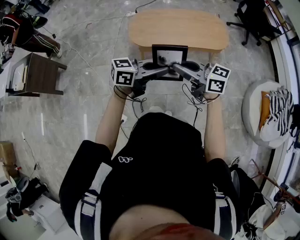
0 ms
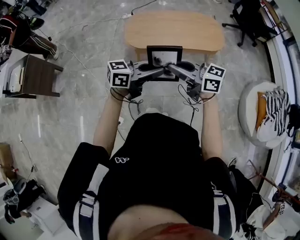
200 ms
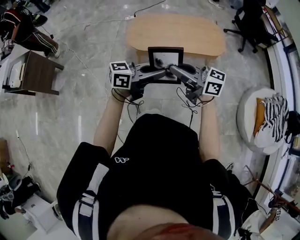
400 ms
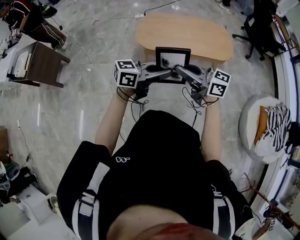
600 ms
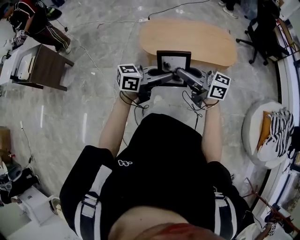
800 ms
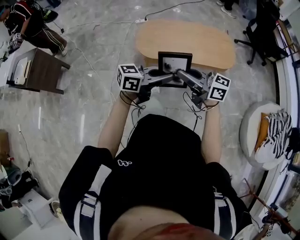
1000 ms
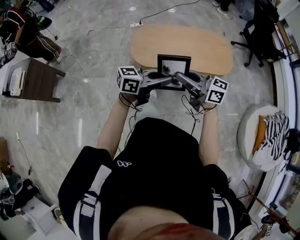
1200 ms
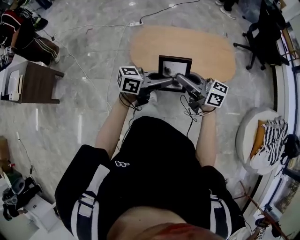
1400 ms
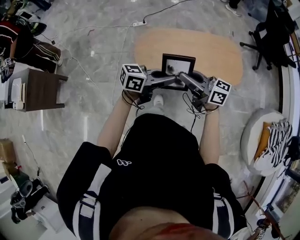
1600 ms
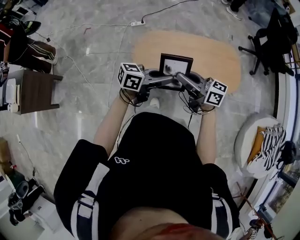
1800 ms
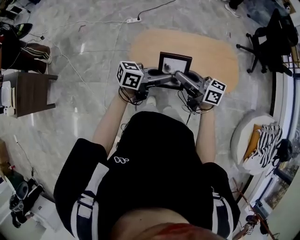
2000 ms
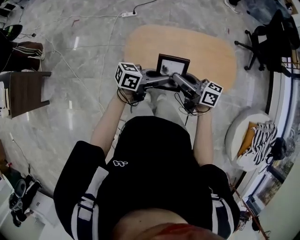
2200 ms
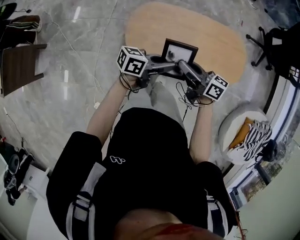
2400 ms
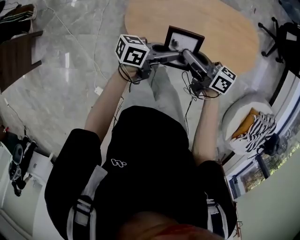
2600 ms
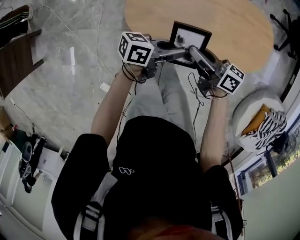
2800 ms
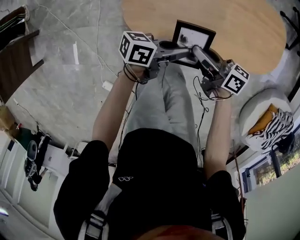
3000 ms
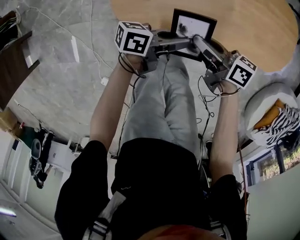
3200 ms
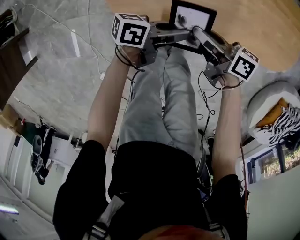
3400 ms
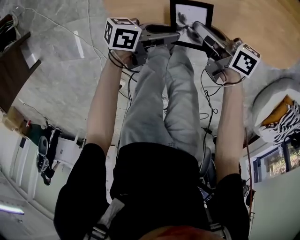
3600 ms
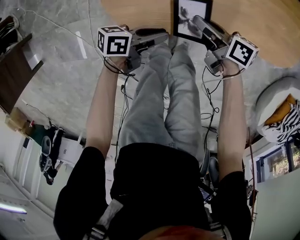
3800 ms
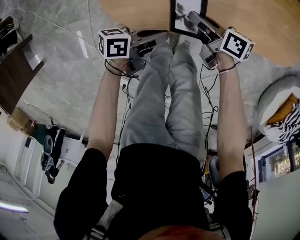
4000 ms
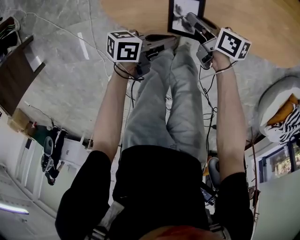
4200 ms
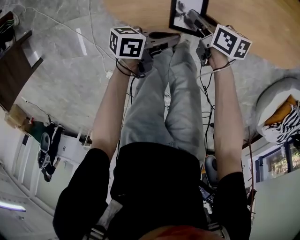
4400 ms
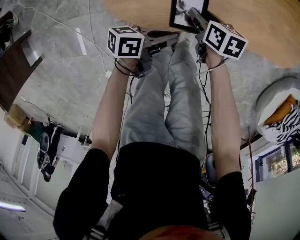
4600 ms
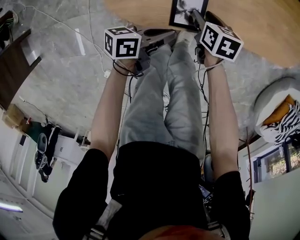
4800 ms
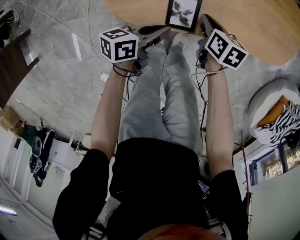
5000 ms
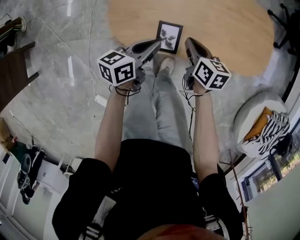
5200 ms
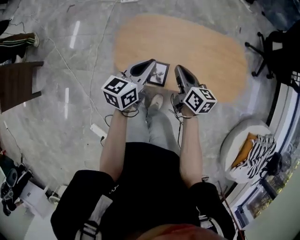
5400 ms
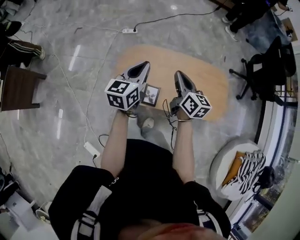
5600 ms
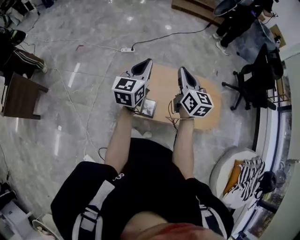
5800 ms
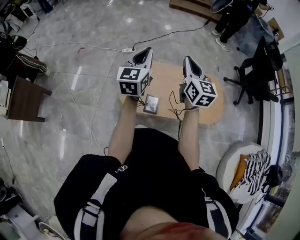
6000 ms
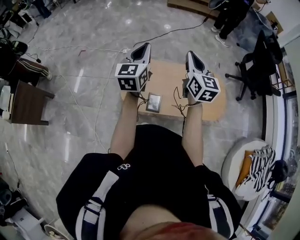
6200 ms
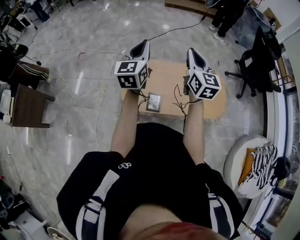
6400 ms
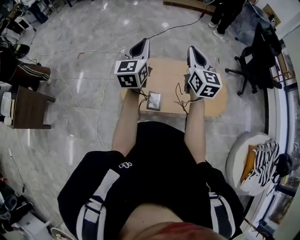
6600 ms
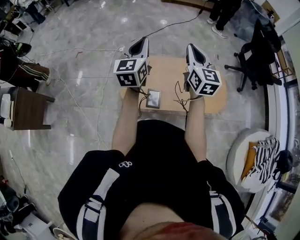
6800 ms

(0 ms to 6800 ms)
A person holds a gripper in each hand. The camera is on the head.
0 ms - 1400 ms: The left gripper ends up approximately 25 cm from where it was; the right gripper ends up about 25 cm from where it was.
1400 ms - 2800 ms: Both grippers travel together downward, some 25 cm. The left gripper changes its angle by roughly 30 degrees; the right gripper changes its angle by about 30 degrees.
2800 ms - 4000 ms: The grippers both shift downward by some 25 cm. The left gripper opens and closes again. Meanwhile the right gripper changes its angle by some 20 degrees.
4000 ms - 5400 ms: The two grippers go about 30 cm upward. The right gripper changes its angle by roughly 30 degrees, and opens and closes again; the left gripper turns by approximately 50 degrees.
5400 ms - 6800 ms: The two grippers go roughly 30 cm upward. The left gripper turns by roughly 30 degrees. Meanwhile the right gripper rotates approximately 40 degrees.

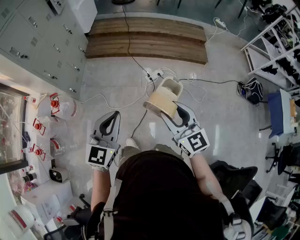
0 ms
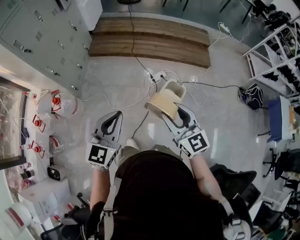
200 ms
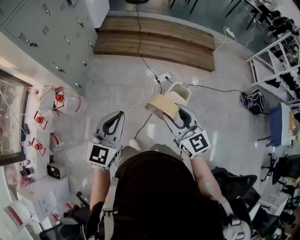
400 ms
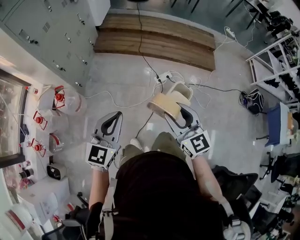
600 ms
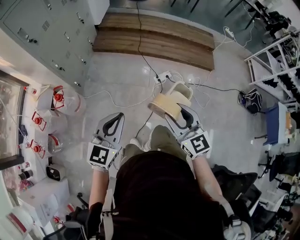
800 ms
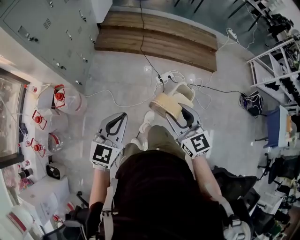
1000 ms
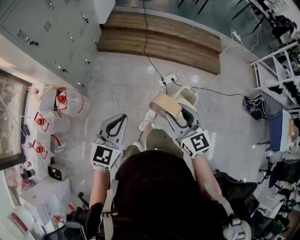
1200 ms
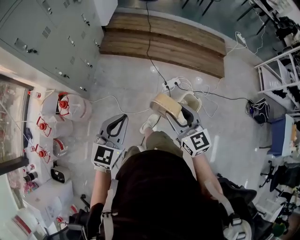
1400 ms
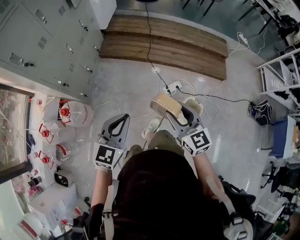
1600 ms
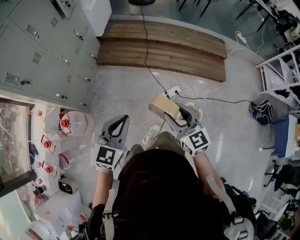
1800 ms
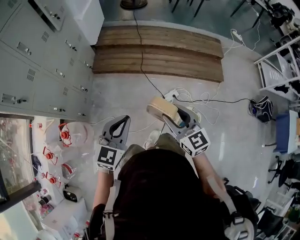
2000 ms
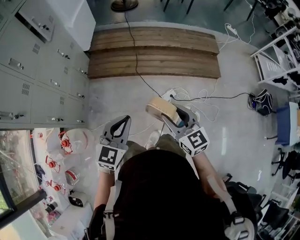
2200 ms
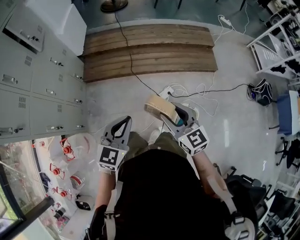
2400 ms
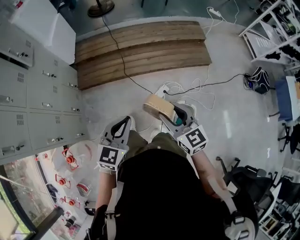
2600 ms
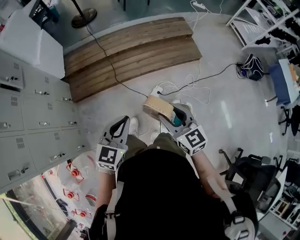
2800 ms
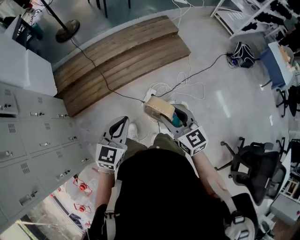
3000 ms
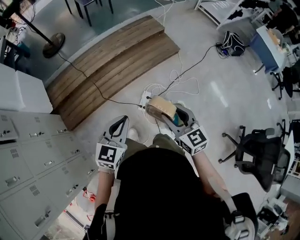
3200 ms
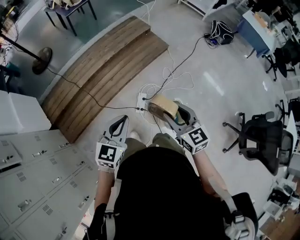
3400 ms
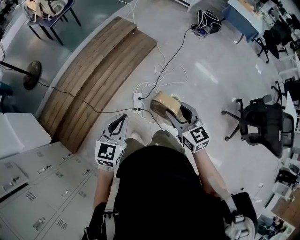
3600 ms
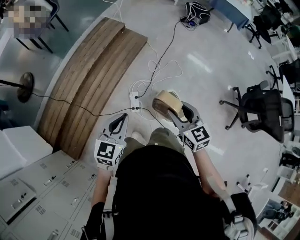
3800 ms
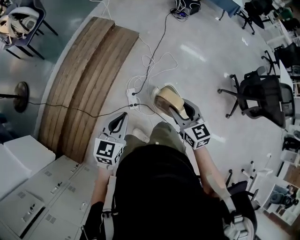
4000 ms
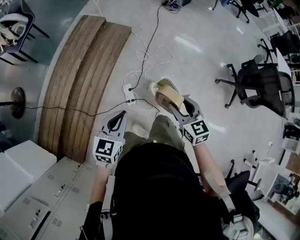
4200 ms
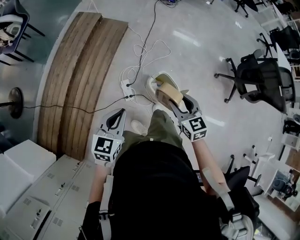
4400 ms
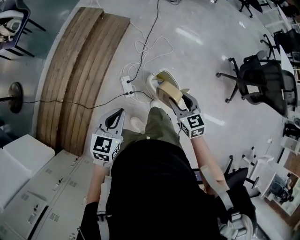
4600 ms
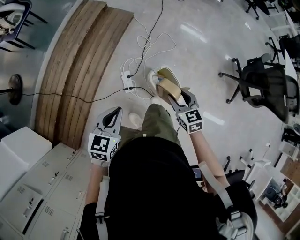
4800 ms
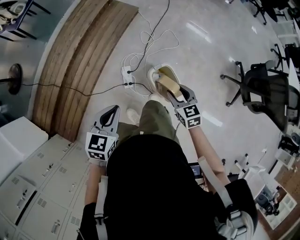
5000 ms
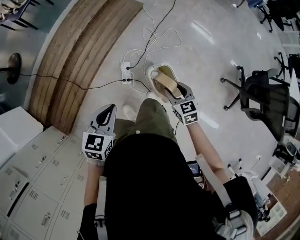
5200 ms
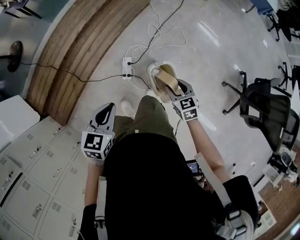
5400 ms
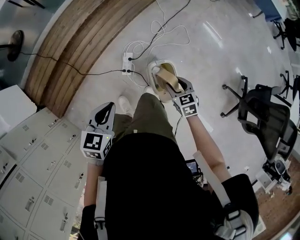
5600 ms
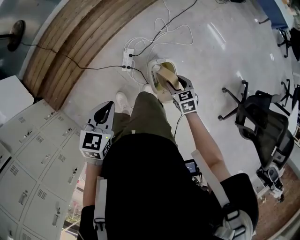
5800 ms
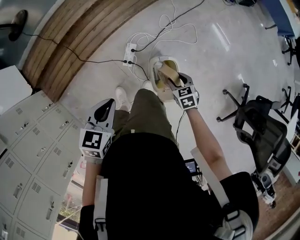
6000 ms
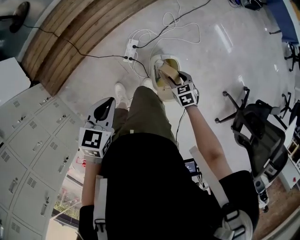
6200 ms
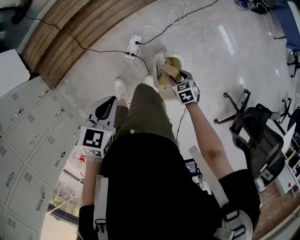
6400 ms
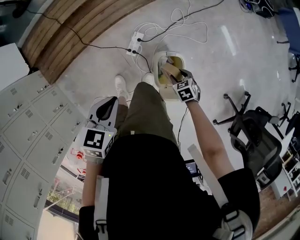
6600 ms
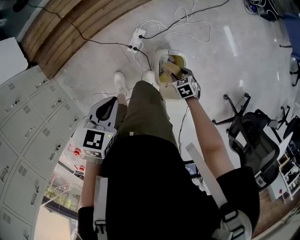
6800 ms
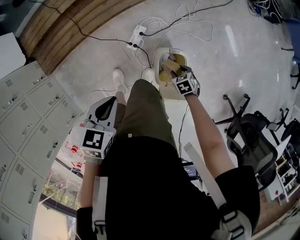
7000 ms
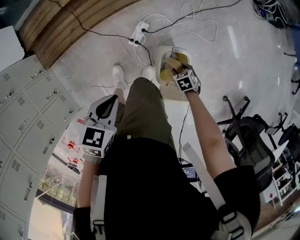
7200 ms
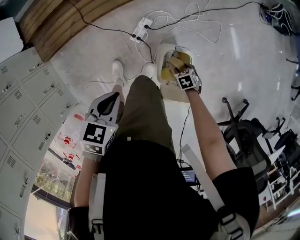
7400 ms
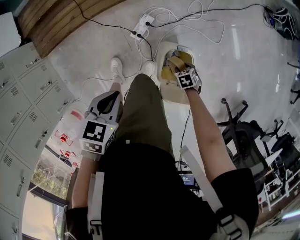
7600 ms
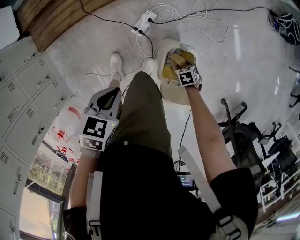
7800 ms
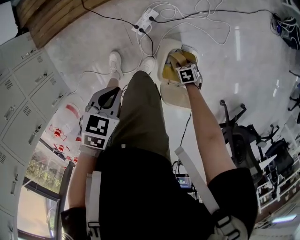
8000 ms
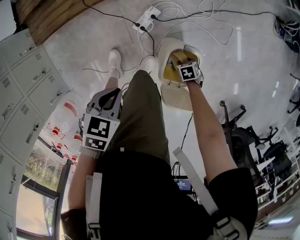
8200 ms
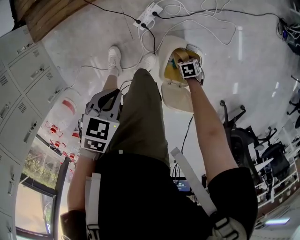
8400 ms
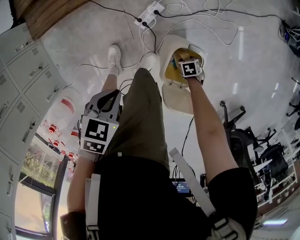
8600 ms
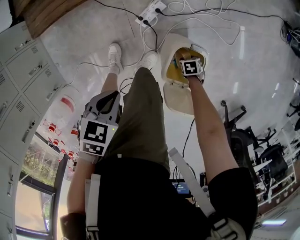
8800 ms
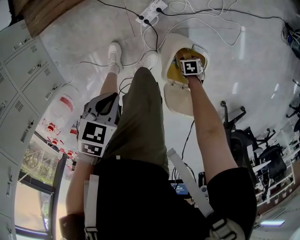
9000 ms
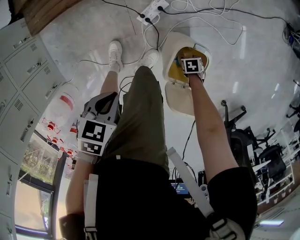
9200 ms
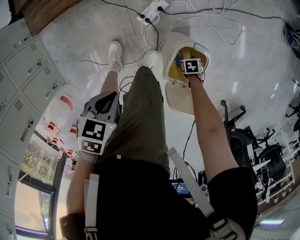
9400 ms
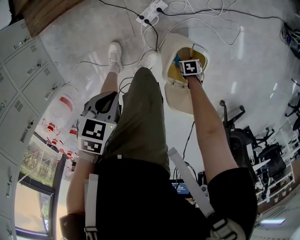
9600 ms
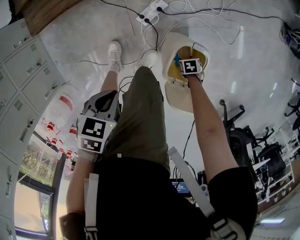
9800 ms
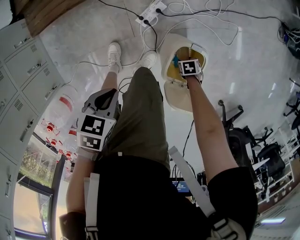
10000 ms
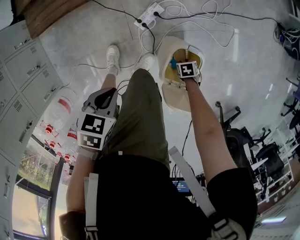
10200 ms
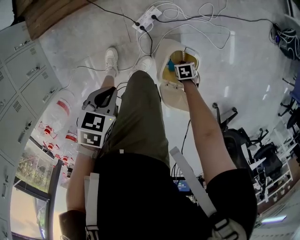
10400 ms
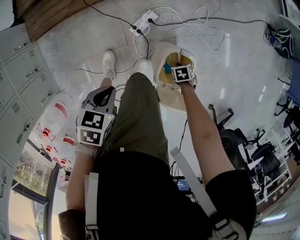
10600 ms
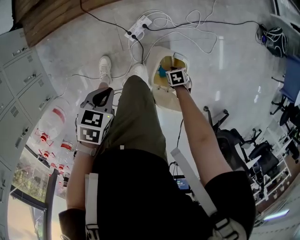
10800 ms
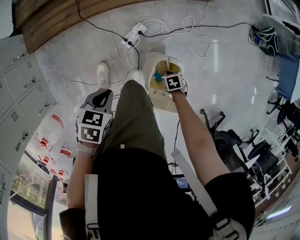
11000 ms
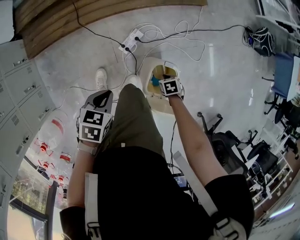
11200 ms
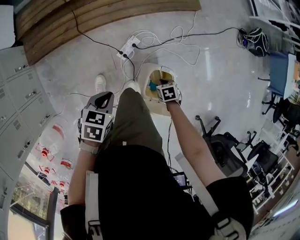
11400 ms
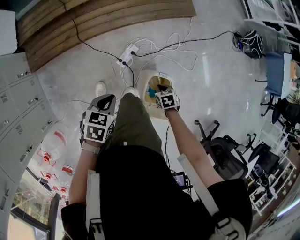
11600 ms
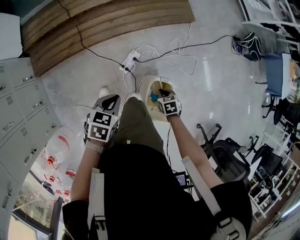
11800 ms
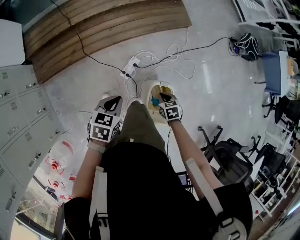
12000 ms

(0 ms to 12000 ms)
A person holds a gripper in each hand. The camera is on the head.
0 ms - 1600 ms: The two grippers go some 30 cm forward and to the left.
1600 ms - 3000 ms: The right gripper shifts by some 25 cm, and swivels about 30 degrees; the left gripper shifts by approximately 35 cm, and turns by about 30 degrees.
3000 ms - 4400 ms: The right gripper moves downward, approximately 10 cm, and turns by about 50 degrees; the left gripper changes place by about 15 cm, and swivels roughly 40 degrees.
4400 ms - 6000 ms: The left gripper travels downward by approximately 10 cm, and rotates roughly 30 degrees. The right gripper is displaced downward by some 25 cm, and changes its angle by some 40 degrees.
6000 ms - 7600 ms: The left gripper heads downward, covering roughly 15 cm, and turns by some 20 degrees. Meanwhile the right gripper travels downward by roughly 25 cm, and changes its angle by approximately 30 degrees.
7600 ms - 9000 ms: Both grippers move downward, approximately 15 cm.
9000 ms - 10400 ms: The right gripper is displaced upward by some 5 cm, and closes its fingers.
10400 ms - 12000 ms: The left gripper heads upward, covering approximately 15 cm, while the right gripper travels upward by roughly 30 cm, and rotates about 20 degrees.

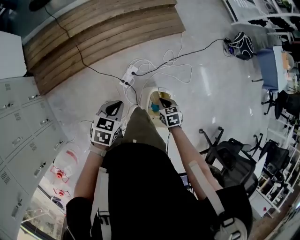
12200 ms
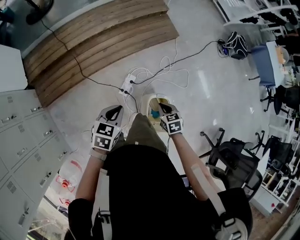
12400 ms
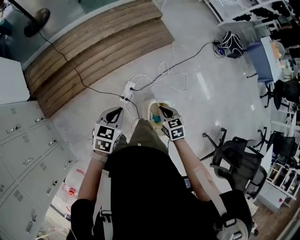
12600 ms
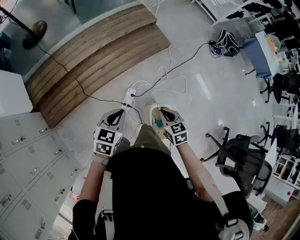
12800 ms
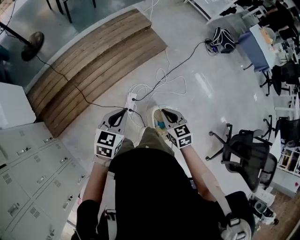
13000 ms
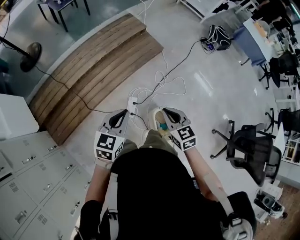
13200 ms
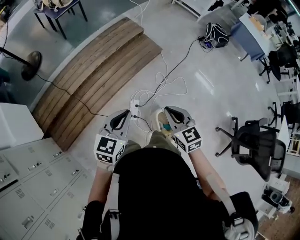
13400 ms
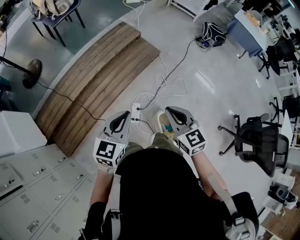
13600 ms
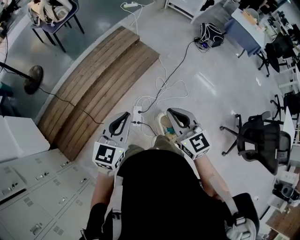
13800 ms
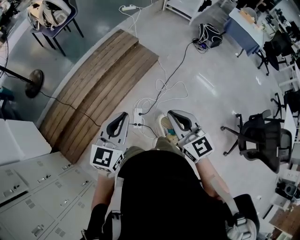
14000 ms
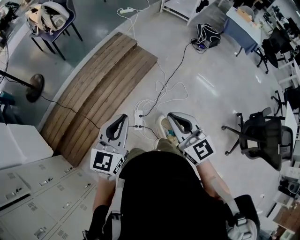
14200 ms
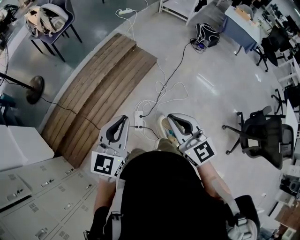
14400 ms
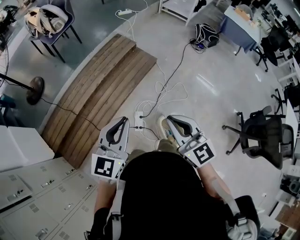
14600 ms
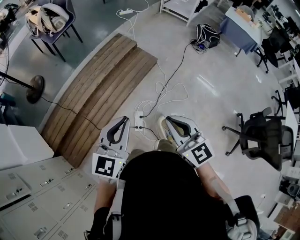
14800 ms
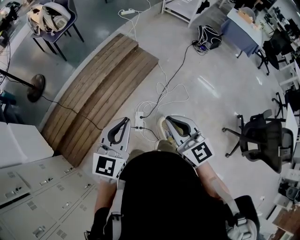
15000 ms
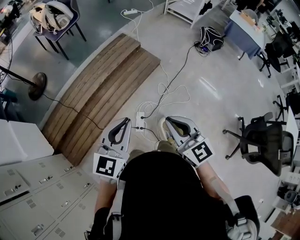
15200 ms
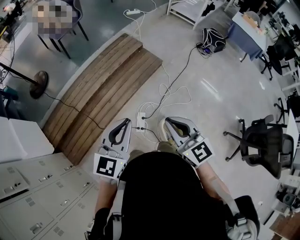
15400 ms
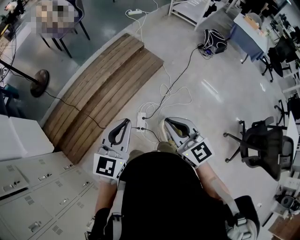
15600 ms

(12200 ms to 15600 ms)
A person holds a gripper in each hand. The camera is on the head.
12200 ms - 13800 ms: The two grippers go some 30 cm upward. The right gripper points its fingers approximately 50 degrees further upward. The left gripper tips its fingers upward by some 30 degrees.
13800 ms - 15600 ms: Both grippers move upward, roughly 5 cm.

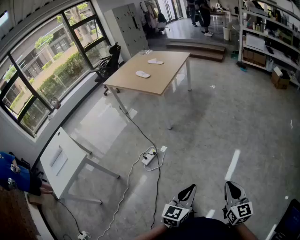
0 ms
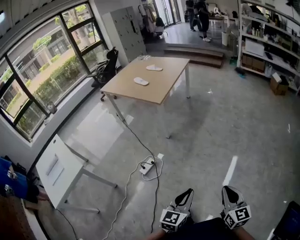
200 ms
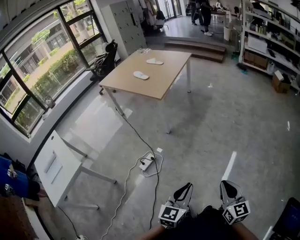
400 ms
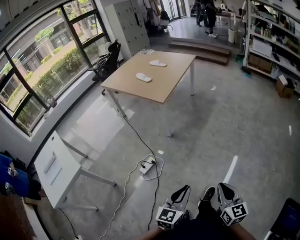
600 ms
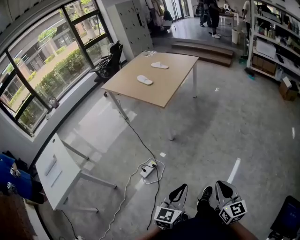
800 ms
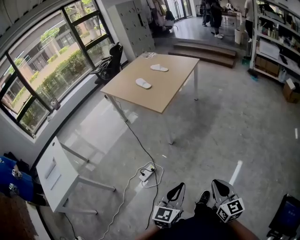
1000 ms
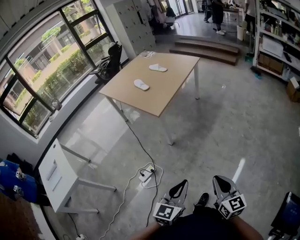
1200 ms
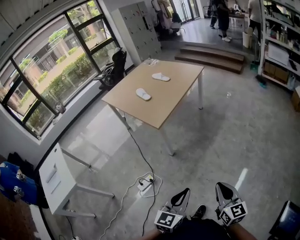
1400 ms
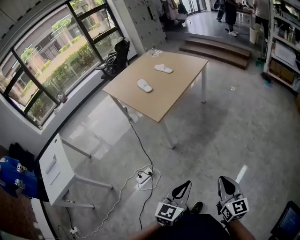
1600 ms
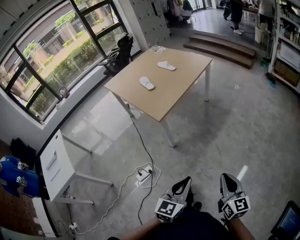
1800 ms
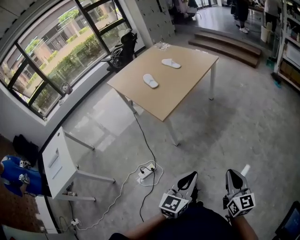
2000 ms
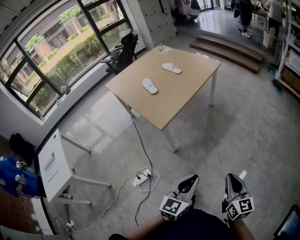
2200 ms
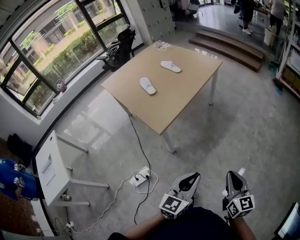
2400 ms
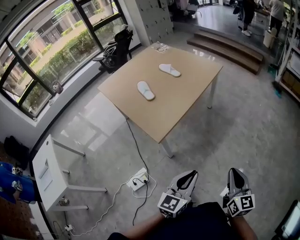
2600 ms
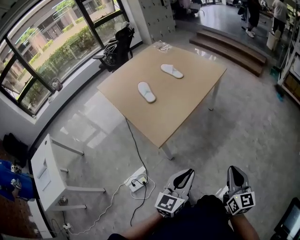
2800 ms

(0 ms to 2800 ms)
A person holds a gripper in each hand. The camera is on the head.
0 ms - 1400 ms: Both grippers travel together forward, about 40 cm.
1400 ms - 2800 ms: The grippers both shift forward by some 35 cm.
